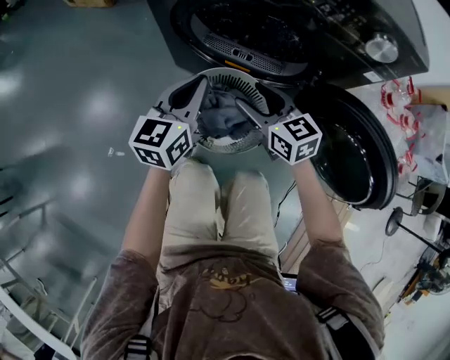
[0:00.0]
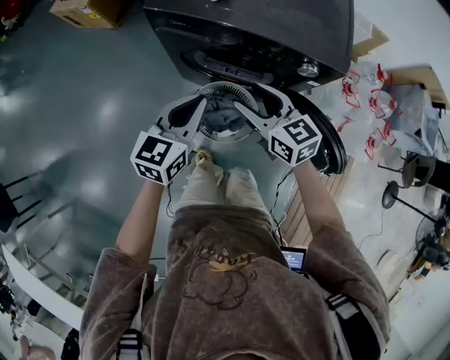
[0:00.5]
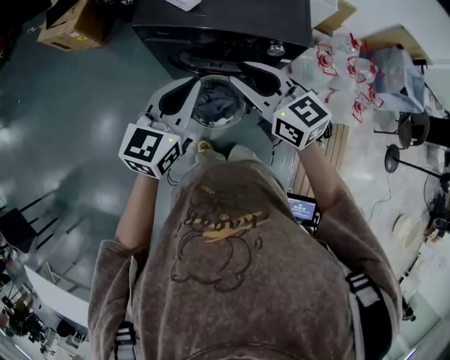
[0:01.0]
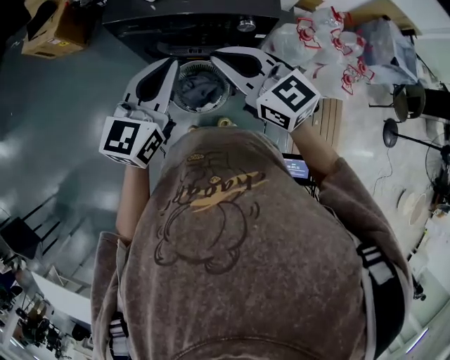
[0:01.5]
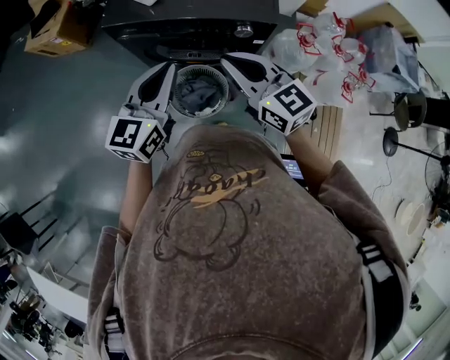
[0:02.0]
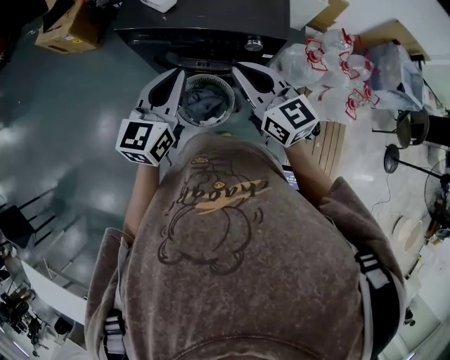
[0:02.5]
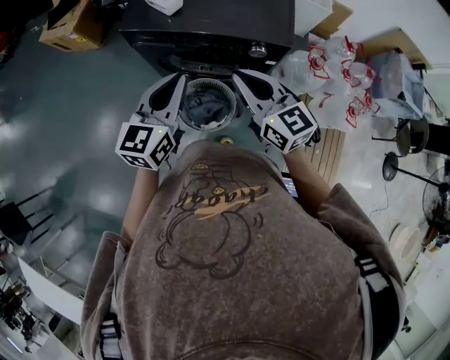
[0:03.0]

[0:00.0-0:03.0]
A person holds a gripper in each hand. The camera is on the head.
0:00.0 to 0:01.5: Both grippers travel together upward, about 50 cm. The right gripper closes; the left gripper changes its angle by approximately 20 degrees.
0:01.5 to 0:03.0: The right gripper ends up approximately 5 cm from where it was.

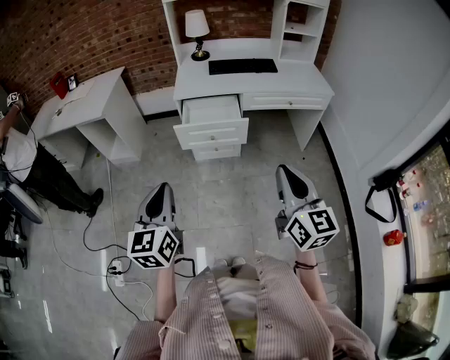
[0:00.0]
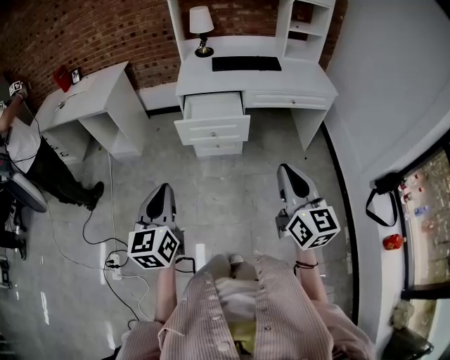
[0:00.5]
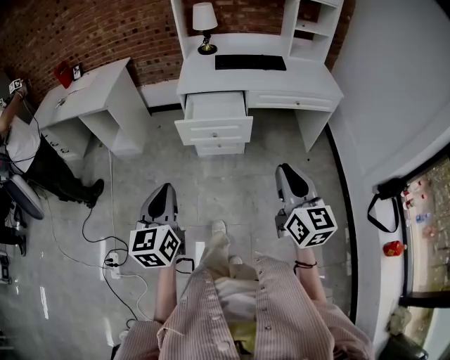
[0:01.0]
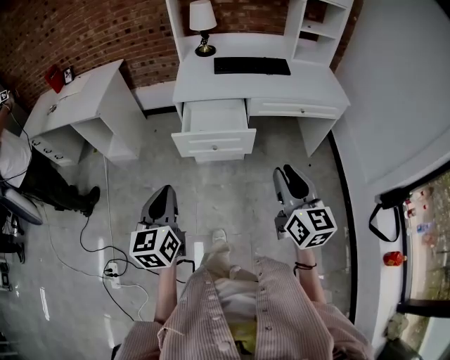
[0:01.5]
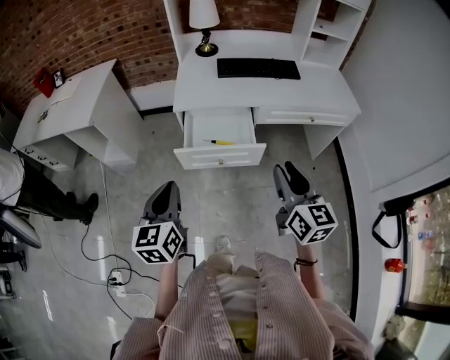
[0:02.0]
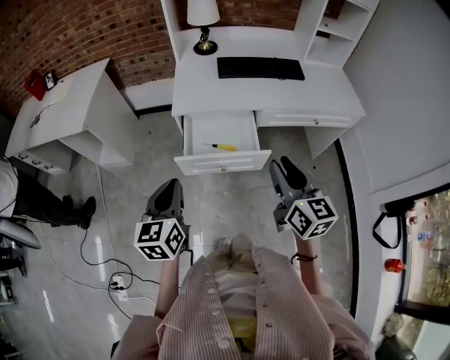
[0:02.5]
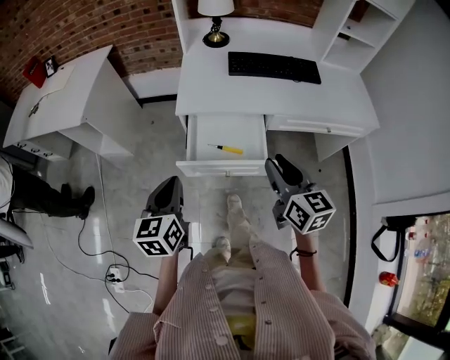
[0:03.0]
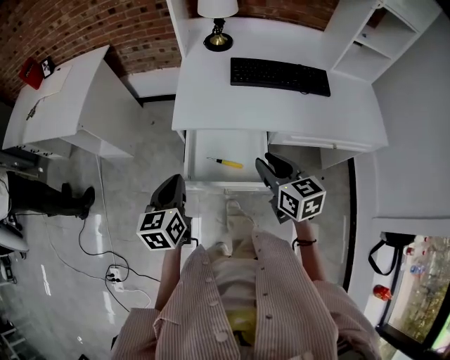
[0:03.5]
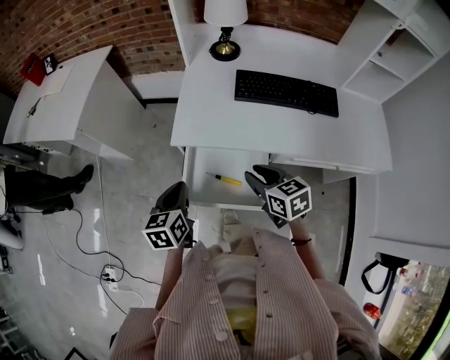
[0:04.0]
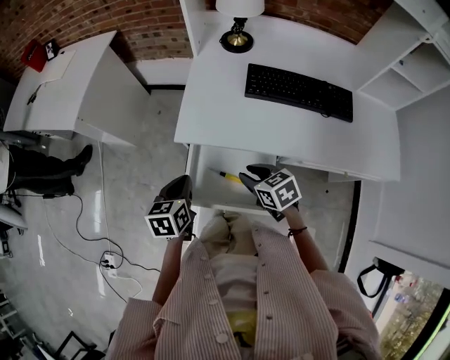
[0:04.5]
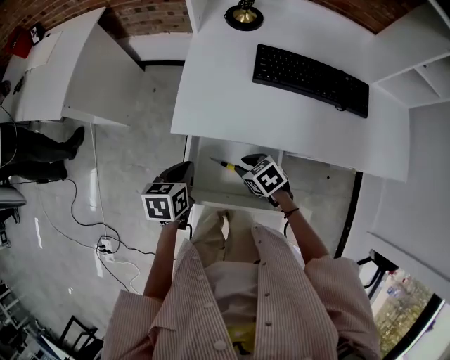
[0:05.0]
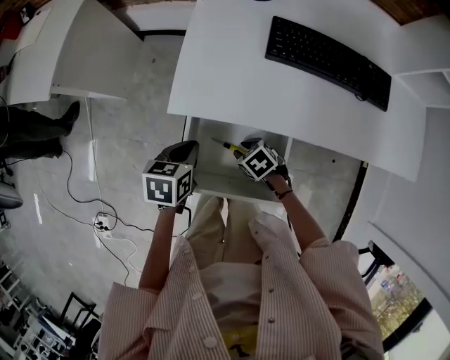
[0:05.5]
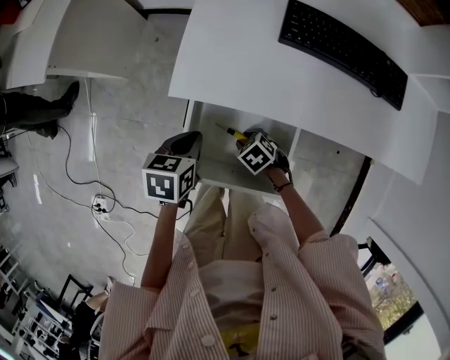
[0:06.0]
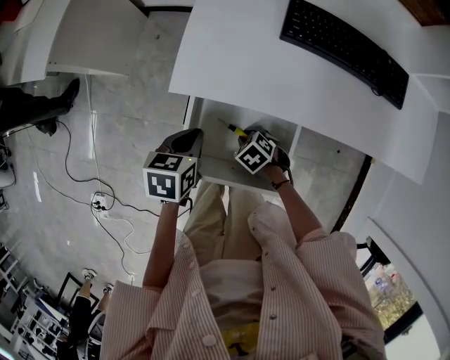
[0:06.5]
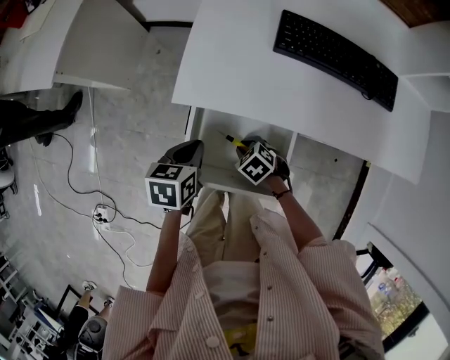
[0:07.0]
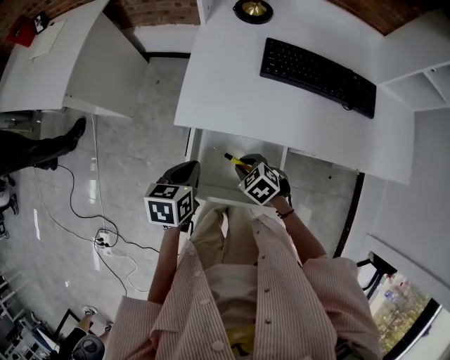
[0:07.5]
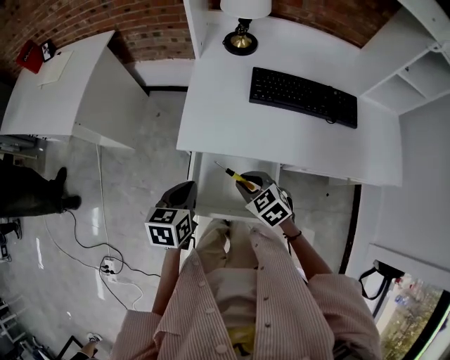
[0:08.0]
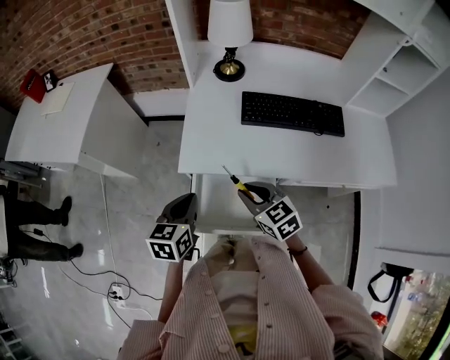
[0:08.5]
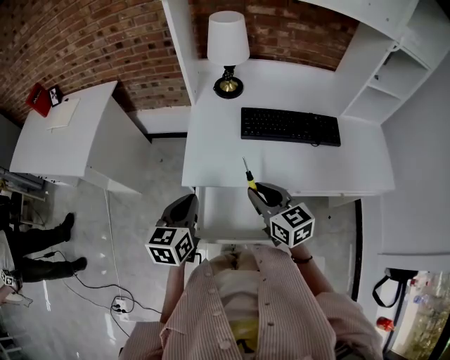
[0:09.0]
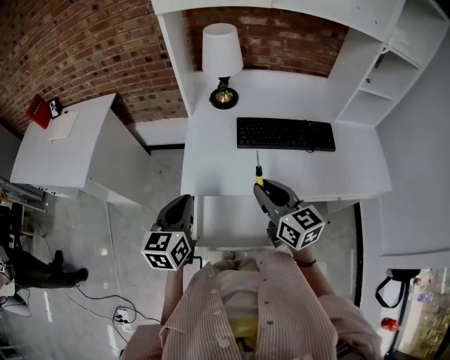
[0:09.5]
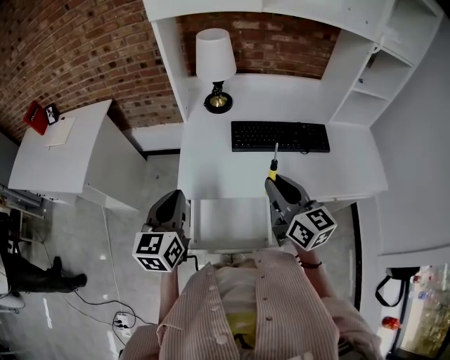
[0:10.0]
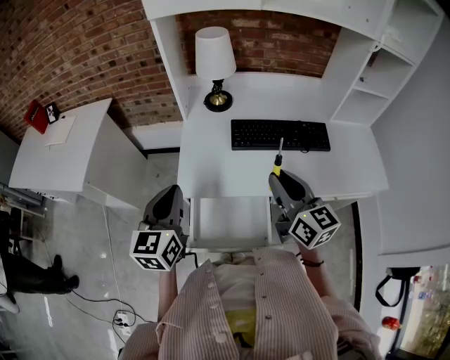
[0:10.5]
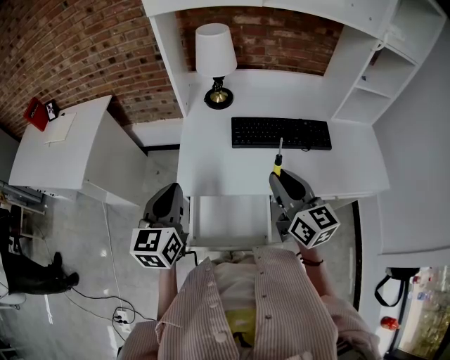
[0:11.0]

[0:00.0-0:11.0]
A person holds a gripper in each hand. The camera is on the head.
0:00.0 to 0:02.0: Both grippers move forward, about 25 cm. The right gripper opens up.
0:02.0 to 0:03.5: The two grippers go about 25 cm forward. The right gripper swivels roughly 30 degrees.
0:03.5 to 0:05.5: The left gripper travels downward, forward and to the right by approximately 20 cm, and swivels about 30 degrees. The right gripper shifts roughly 30 cm downward, and tips its fingers downward by some 40 degrees.
0:05.5 to 0:07.5: The right gripper goes some 5 cm upward.
0:07.5 to 0:09.0: The left gripper goes some 15 cm upward, and changes its angle by about 20 degrees. Meanwhile the right gripper is displaced upward by approximately 25 cm, and points its fingers approximately 40 degrees further upward.
0:09.0 to 0:11.0: The right gripper heads upward and to the right, covering about 15 cm, and swivels approximately 20 degrees, while the left gripper moves upward, about 10 cm.

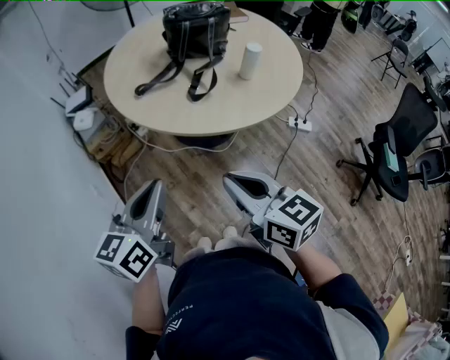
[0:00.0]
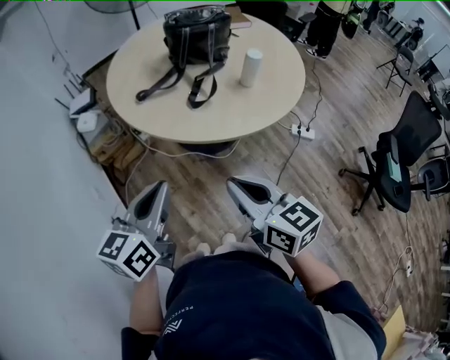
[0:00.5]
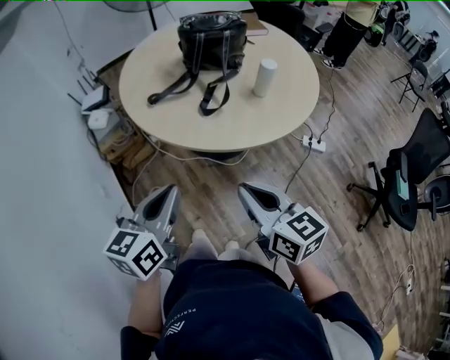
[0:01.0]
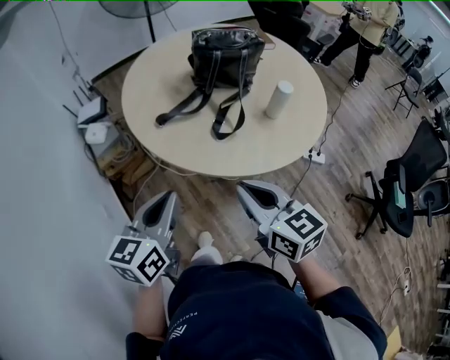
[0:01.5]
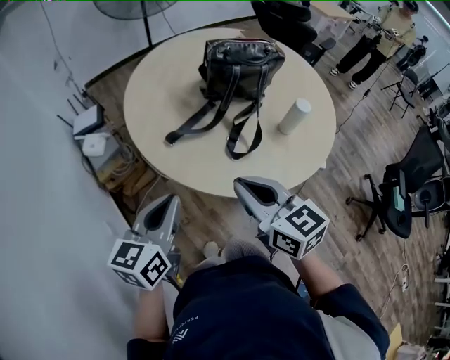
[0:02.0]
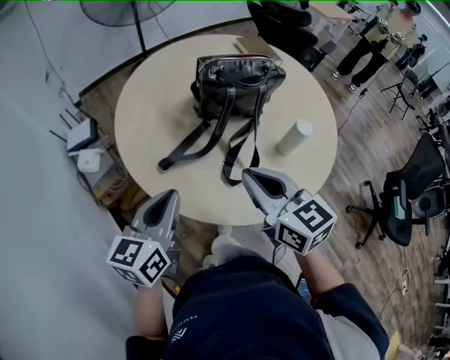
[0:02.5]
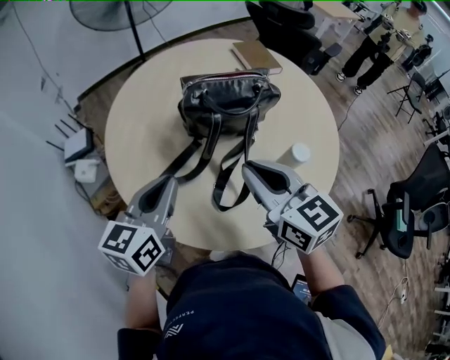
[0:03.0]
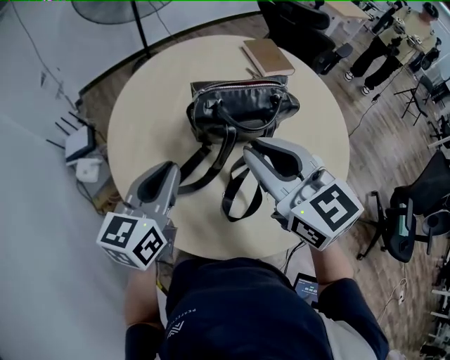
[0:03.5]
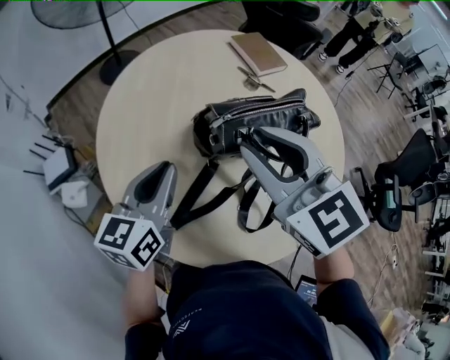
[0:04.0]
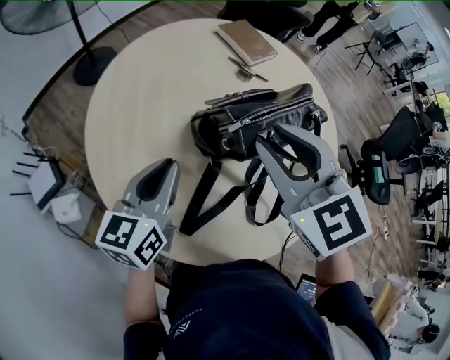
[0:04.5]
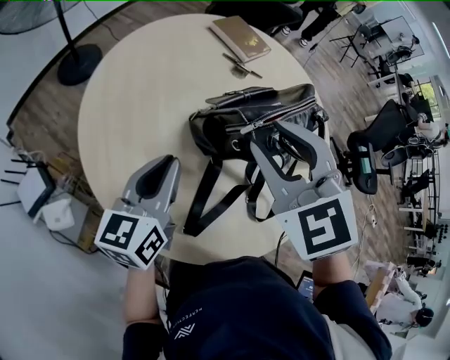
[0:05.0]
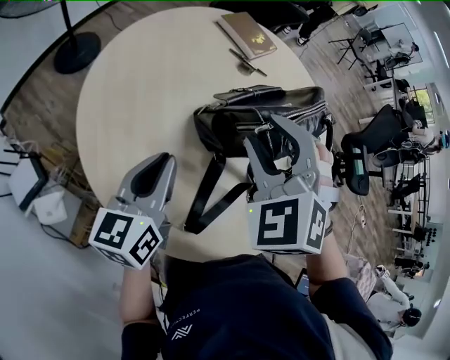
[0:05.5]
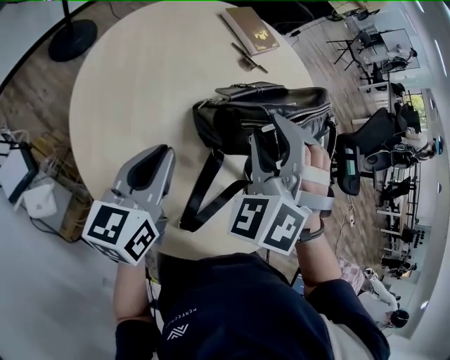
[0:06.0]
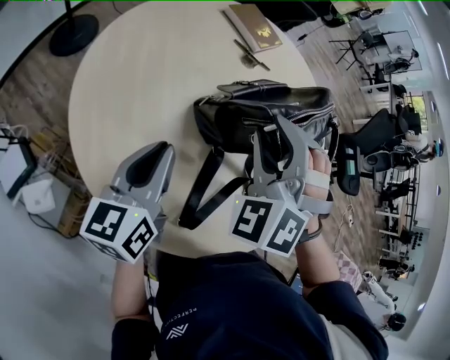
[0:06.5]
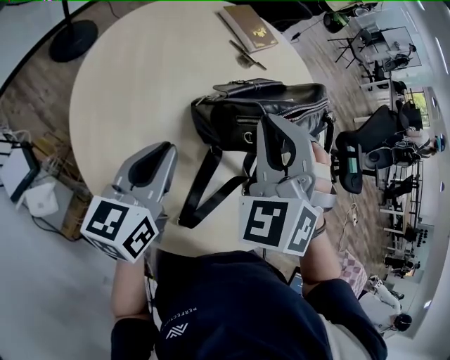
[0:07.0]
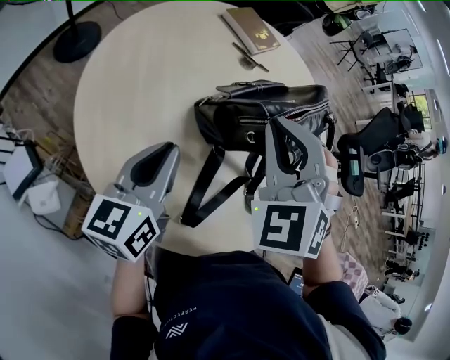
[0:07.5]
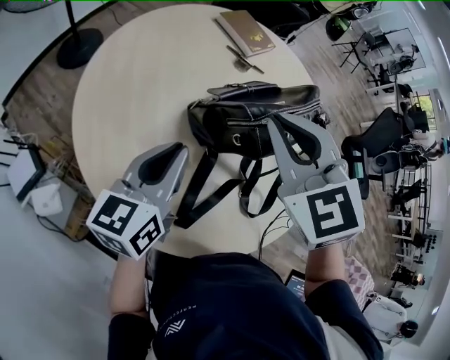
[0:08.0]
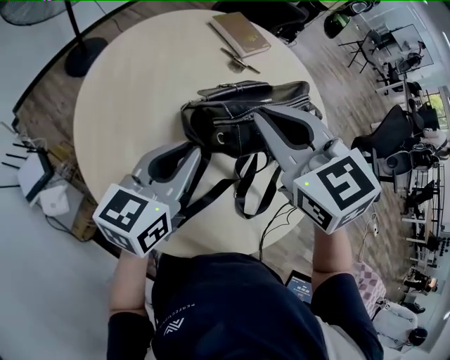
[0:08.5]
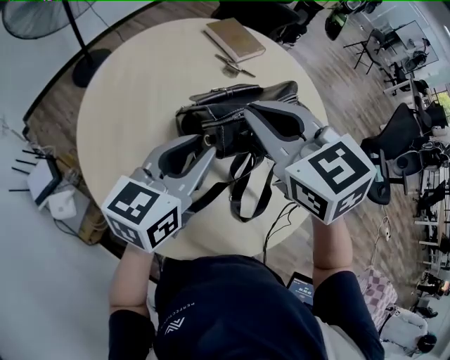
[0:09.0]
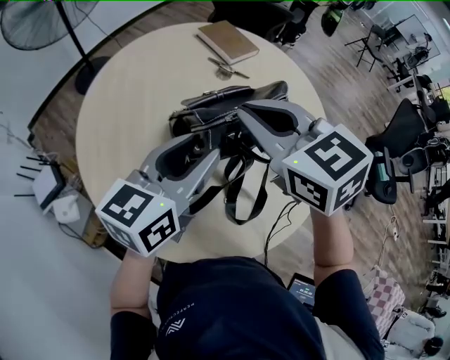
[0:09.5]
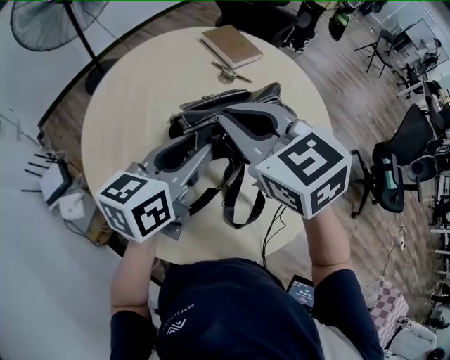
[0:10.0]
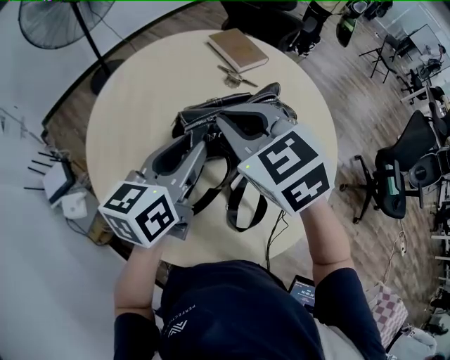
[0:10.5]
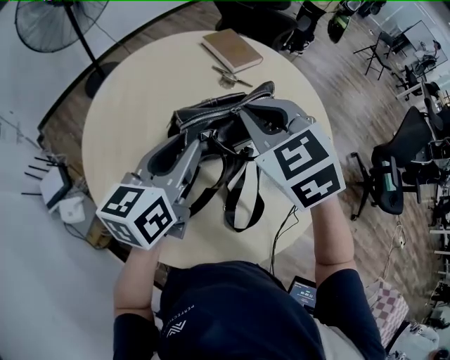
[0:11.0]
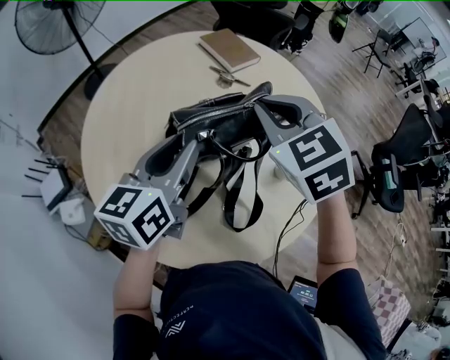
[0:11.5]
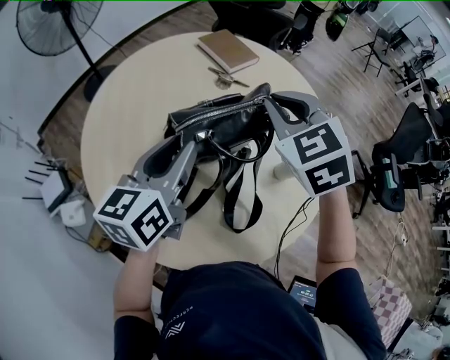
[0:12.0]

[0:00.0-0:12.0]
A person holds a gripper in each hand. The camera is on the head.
0:00.0 to 0:02.0: The grippers both shift forward by some 20 cm.
0:02.0 to 0:04.0: The grippers both shift forward by some 35 cm. The right gripper changes its angle by roughly 30 degrees, and opens its fingers.
0:04.0 to 0:06.0: The left gripper ends up some 10 cm from where it was, while the right gripper is displaced downward by approximately 10 cm, and turns by about 70 degrees.
0:06.0 to 0:08.0: The left gripper ends up roughly 5 cm from where it was. The right gripper is displaced upward by about 5 cm, turns by about 50 degrees, and closes up.
0:08.0 to 0:10.0: The right gripper is displaced to the right by some 5 cm, and rotates approximately 30 degrees. The left gripper shifts approximately 15 cm to the right and upward, and opens.
0:10.0 to 0:12.0: The right gripper travels to the right and forward by roughly 10 cm, and changes its angle by some 30 degrees.
